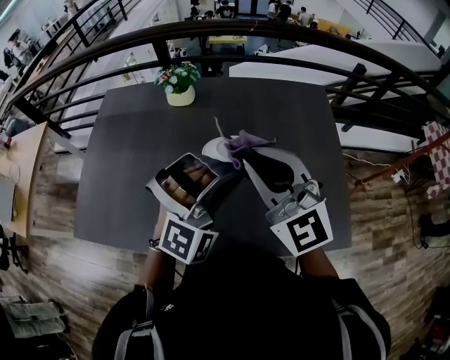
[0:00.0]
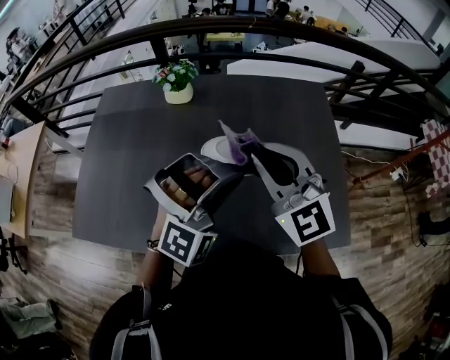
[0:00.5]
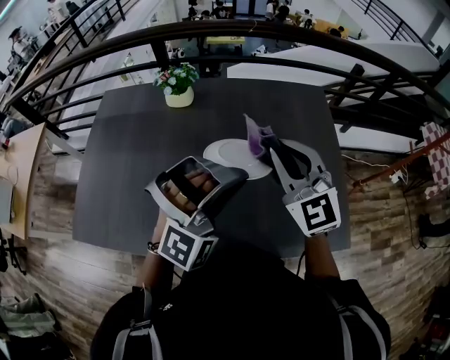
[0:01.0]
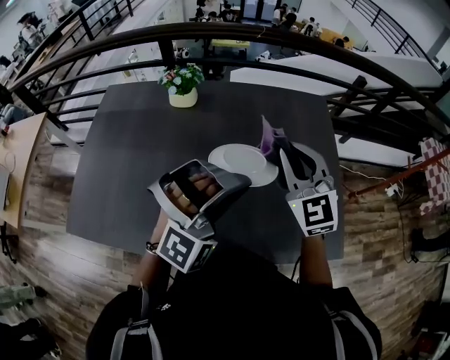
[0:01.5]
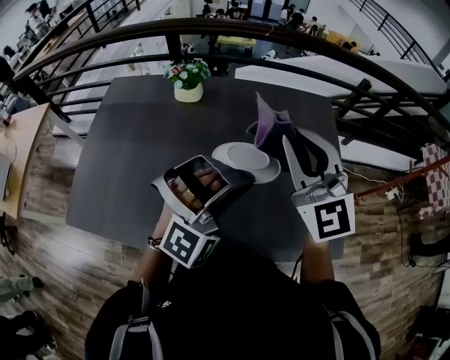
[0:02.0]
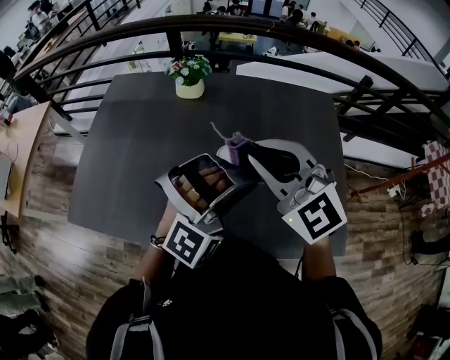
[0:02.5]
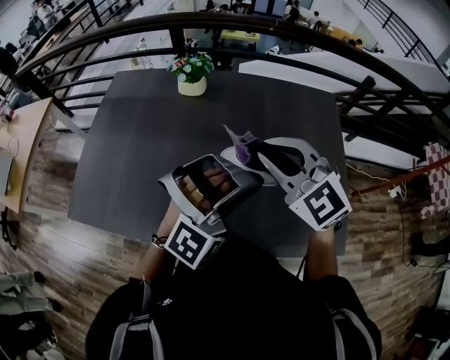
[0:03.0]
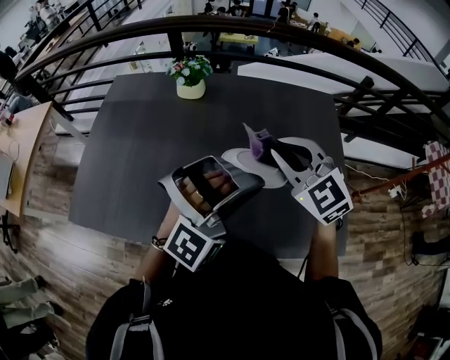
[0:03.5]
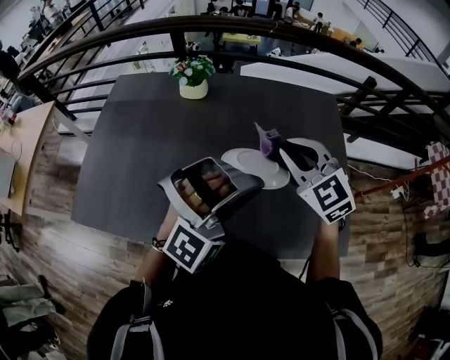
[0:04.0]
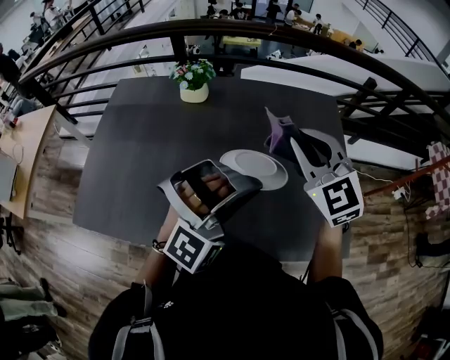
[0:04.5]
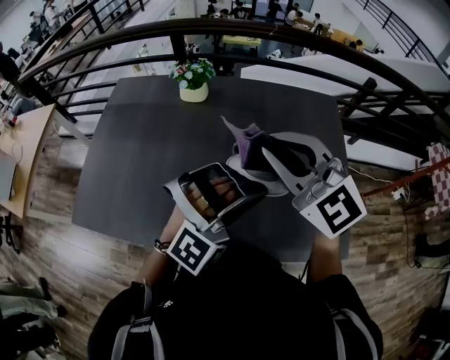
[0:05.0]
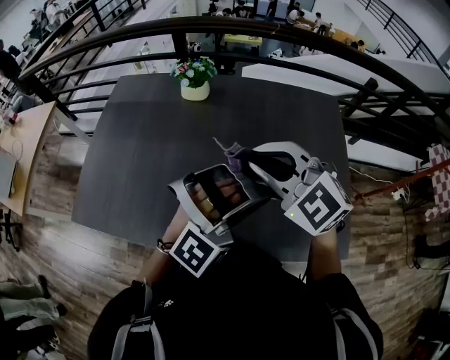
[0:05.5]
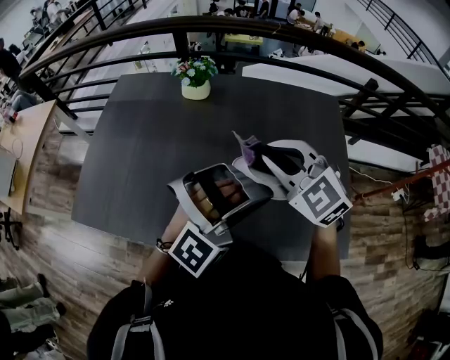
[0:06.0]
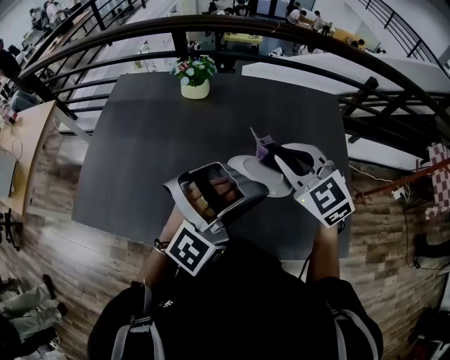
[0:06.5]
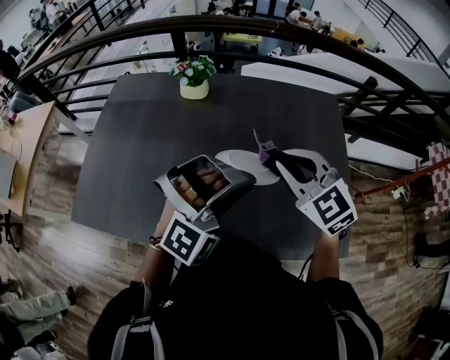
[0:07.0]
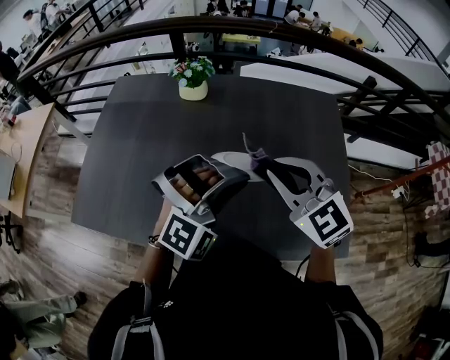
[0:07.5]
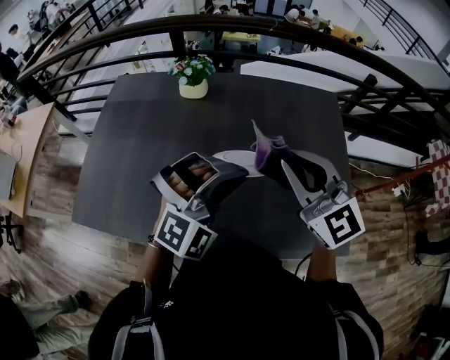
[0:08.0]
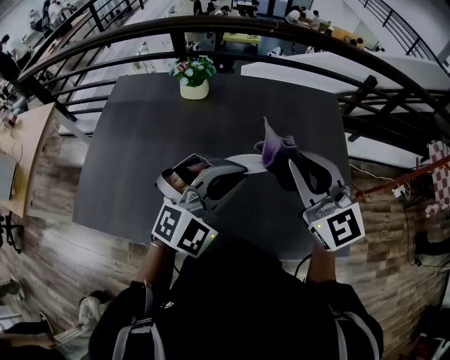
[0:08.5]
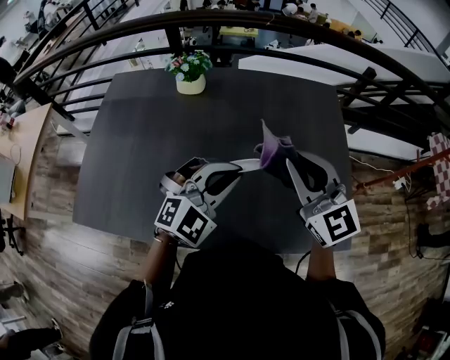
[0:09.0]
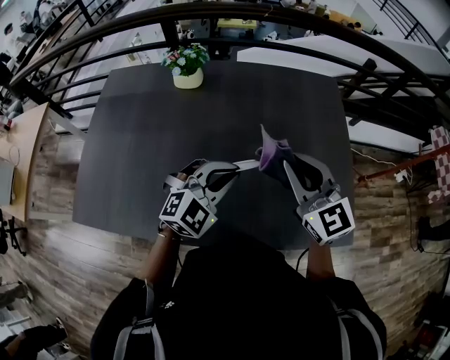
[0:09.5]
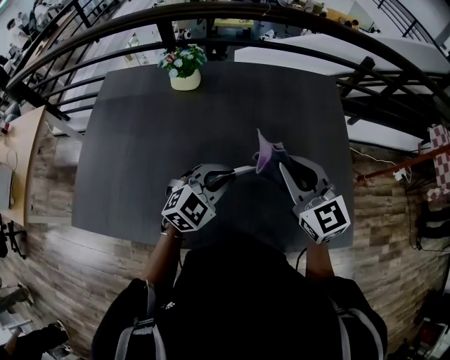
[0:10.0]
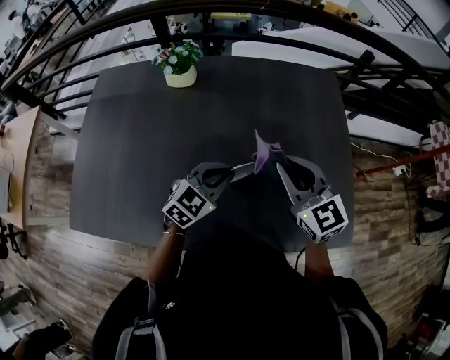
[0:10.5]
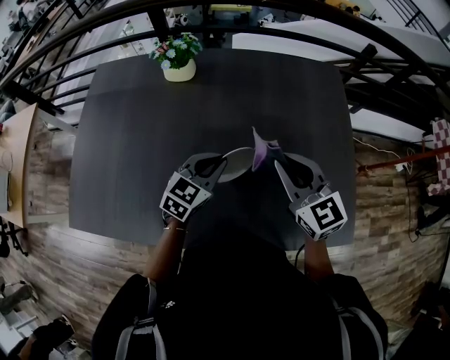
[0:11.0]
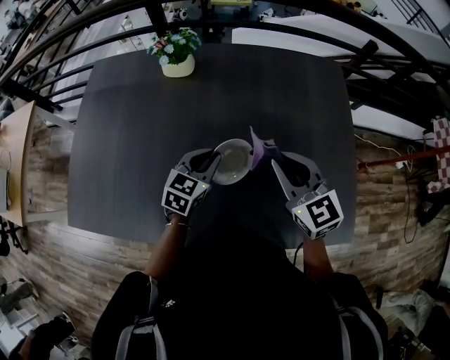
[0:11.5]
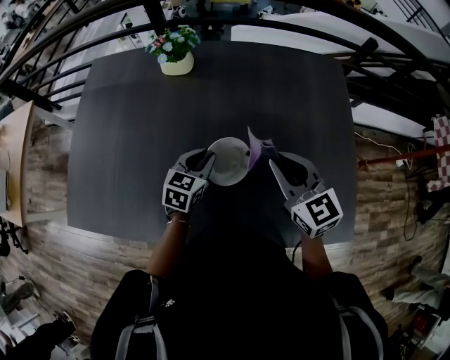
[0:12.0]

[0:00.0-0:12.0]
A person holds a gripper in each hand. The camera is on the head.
0:02.0 to 0:04.0: The right gripper is displaced downward by approximately 10 cm, and changes its angle by roughly 20 degrees.
0:04.0 to 0:06.0: The right gripper heads to the left, covering approximately 5 cm.
0:06.0 to 0:08.0: The right gripper ends up roughly 5 cm from where it was, and swivels some 20 degrees. The left gripper changes place by roughly 5 cm.
0:08.0 to 0:10.0: The right gripper shifts approximately 10 cm downward. The left gripper goes about 15 cm downward, and rolls counterclockwise, seen from behind, by roughly 40 degrees.
0:10.0 to 0:12.0: The right gripper is displaced downward by roughly 5 cm, while the left gripper moves downward, forward and to the left, approximately 15 cm, and changes its angle by about 40 degrees.

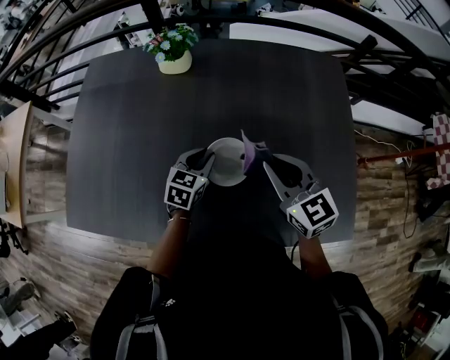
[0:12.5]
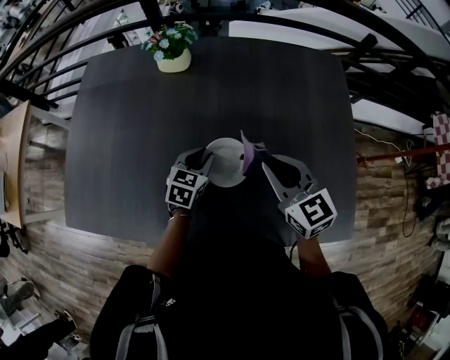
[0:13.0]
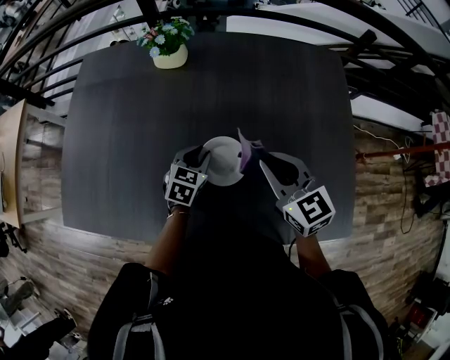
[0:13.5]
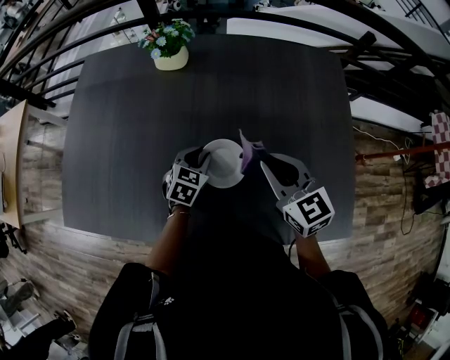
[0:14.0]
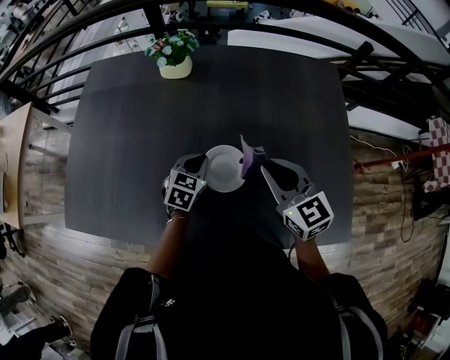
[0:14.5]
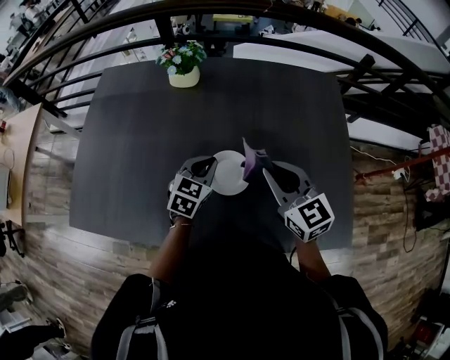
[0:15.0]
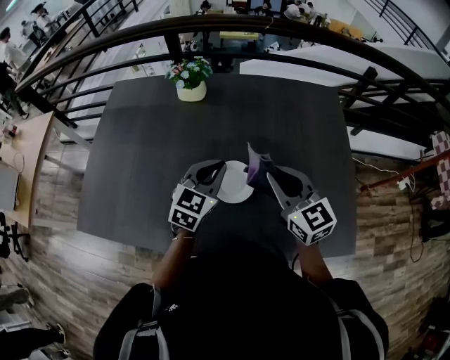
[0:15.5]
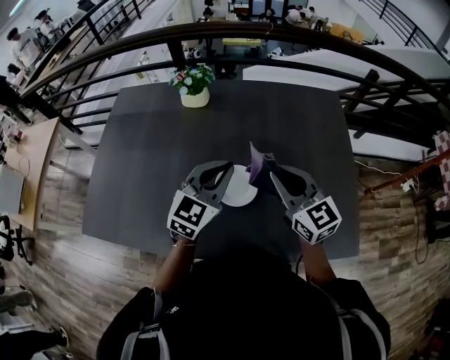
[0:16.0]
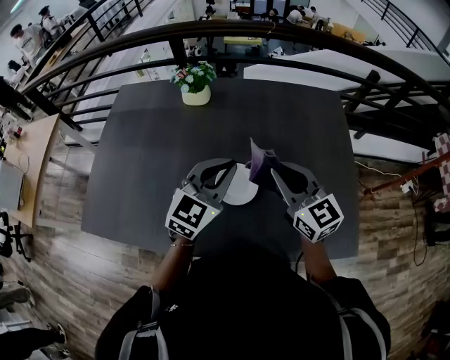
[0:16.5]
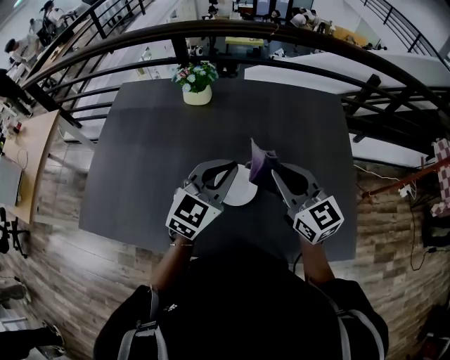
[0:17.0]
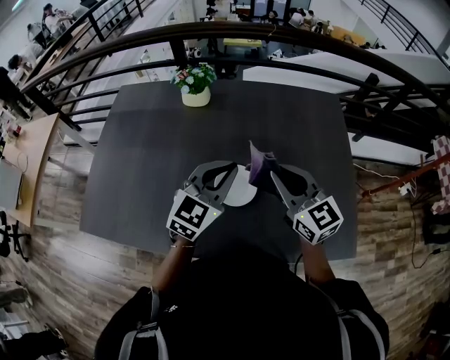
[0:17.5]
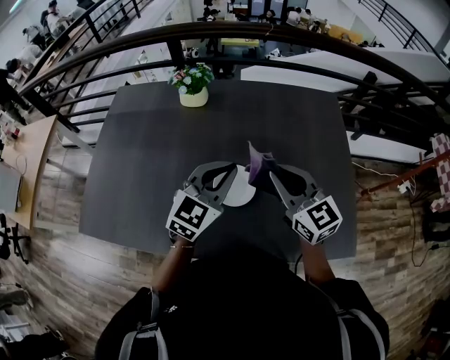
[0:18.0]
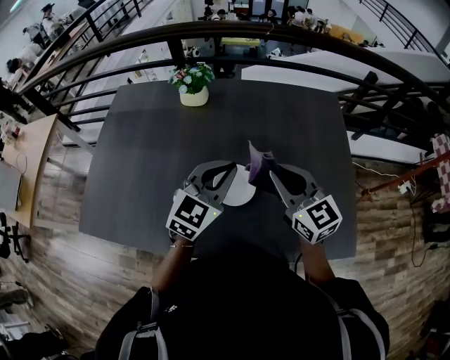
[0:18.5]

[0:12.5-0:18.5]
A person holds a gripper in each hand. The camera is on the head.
0:12.5 to 0:14.5: The grippers stay close to where they were, moving slightly.
0:14.5 to 0:16.5: The left gripper moves upward, approximately 20 cm, and changes its angle by about 30 degrees. The right gripper moves upward, some 5 cm.
0:16.5 to 0:18.5: Both grippers stay about where they are.

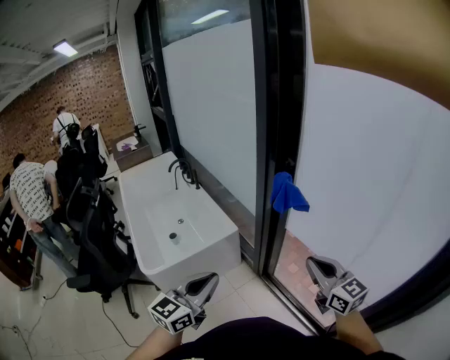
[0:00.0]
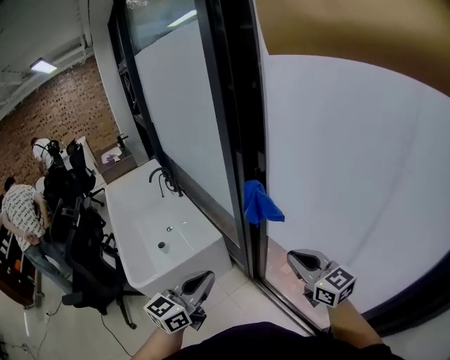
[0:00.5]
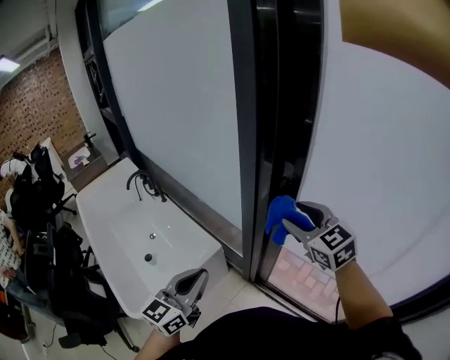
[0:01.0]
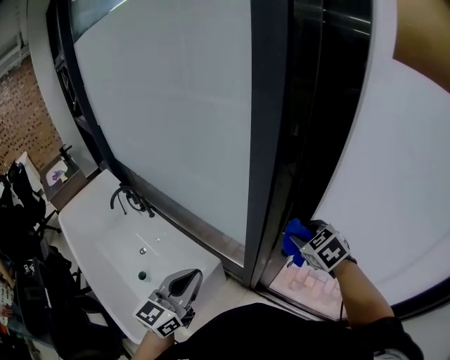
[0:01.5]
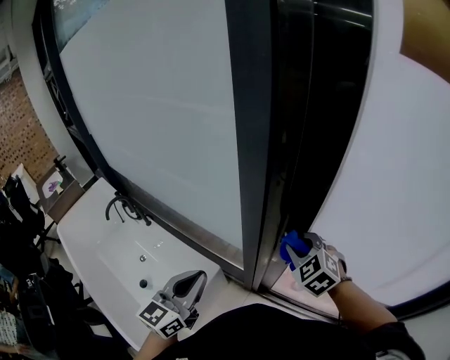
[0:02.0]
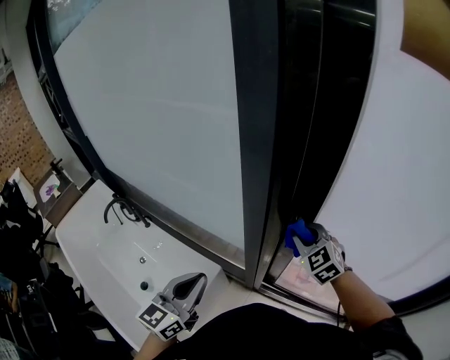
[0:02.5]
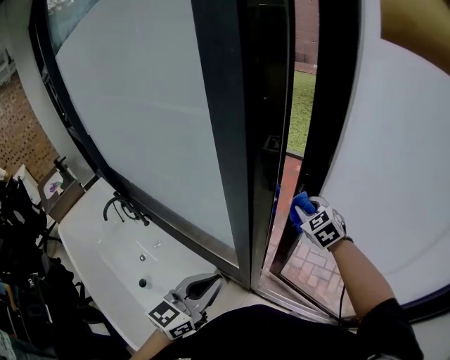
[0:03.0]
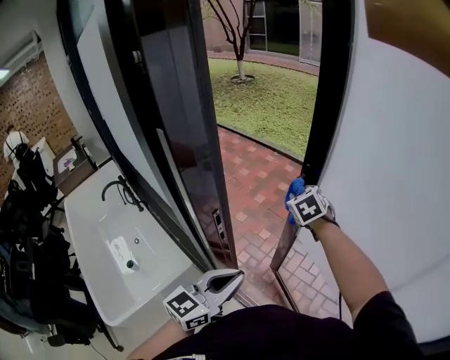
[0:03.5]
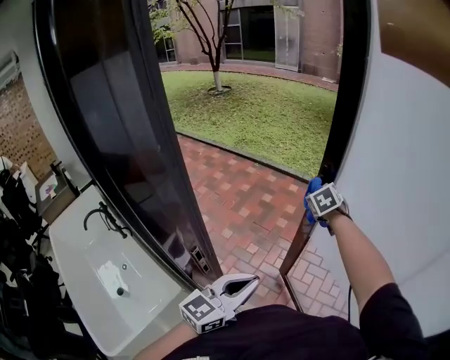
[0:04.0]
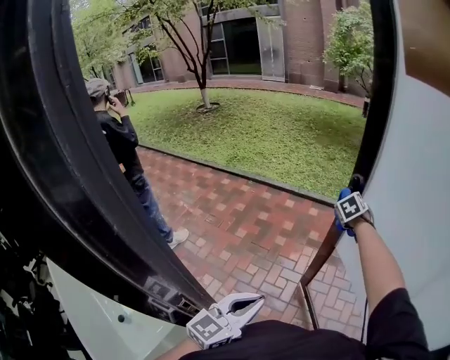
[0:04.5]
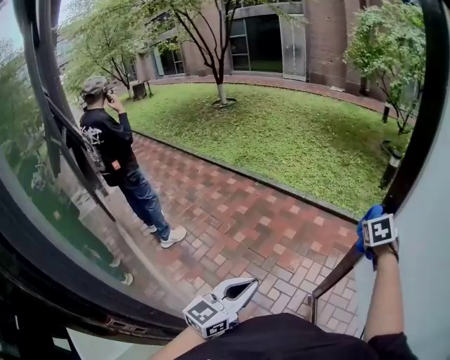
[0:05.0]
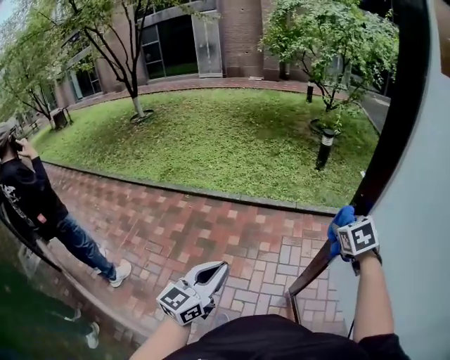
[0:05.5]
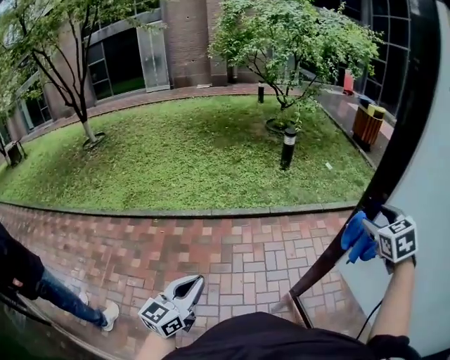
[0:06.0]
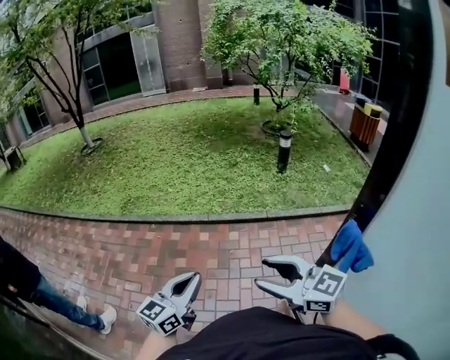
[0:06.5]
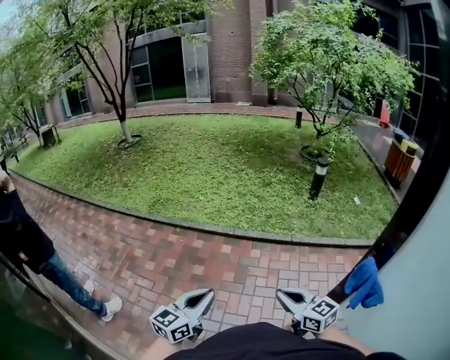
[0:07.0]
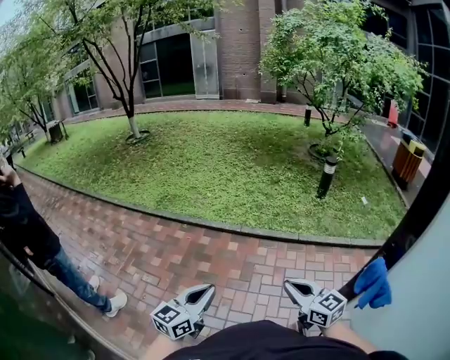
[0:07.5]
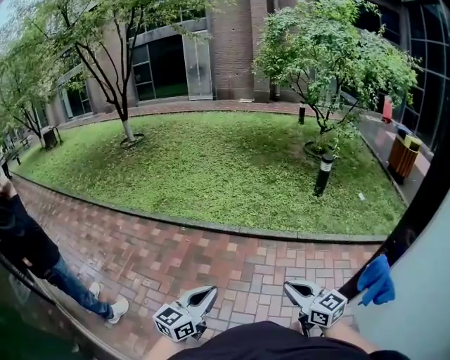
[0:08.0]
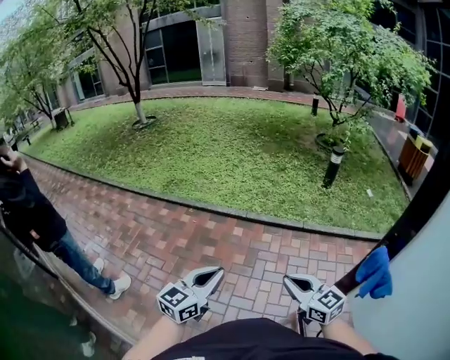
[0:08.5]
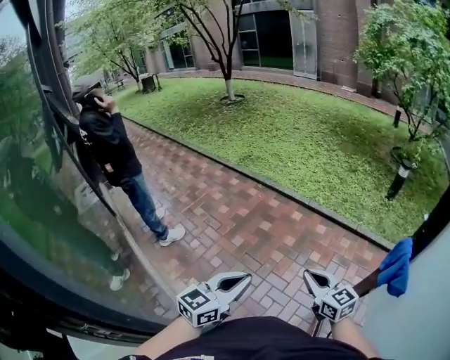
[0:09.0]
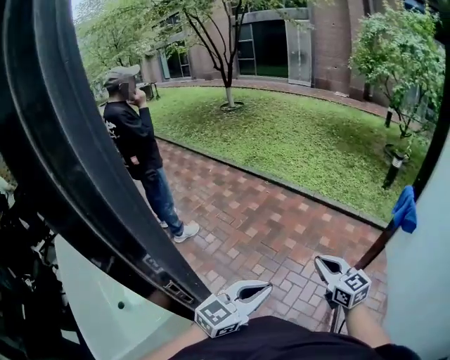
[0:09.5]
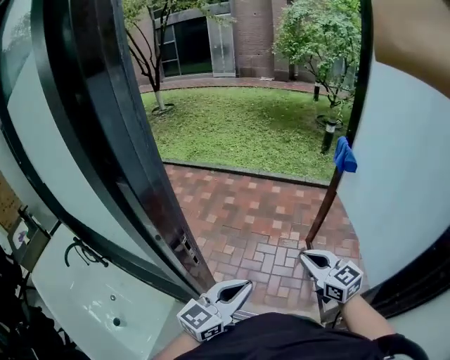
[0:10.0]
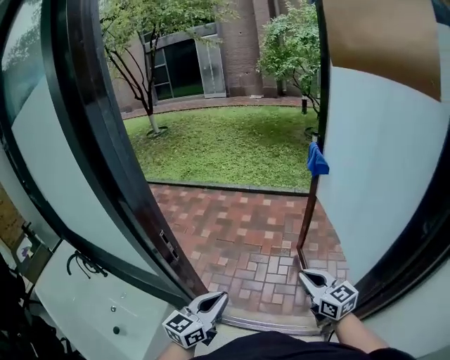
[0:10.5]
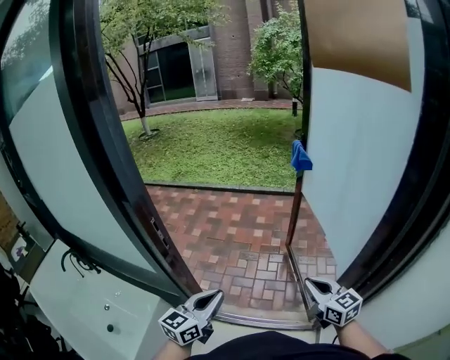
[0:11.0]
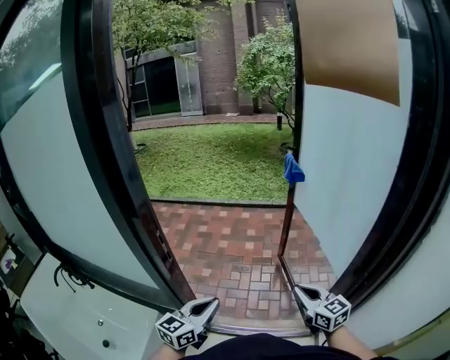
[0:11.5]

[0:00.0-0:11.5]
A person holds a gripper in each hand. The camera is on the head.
0:00.0 to 0:02.0: The right gripper ends up about 40 cm from where it was, tilts its fingers approximately 30 degrees downward, and opens, then closes again. The left gripper changes place by about 40 cm.
0:02.0 to 0:04.0: The left gripper goes roughly 35 cm to the right and forward, while the right gripper heads forward and to the right, covering roughly 50 cm, and swivels some 20 degrees.
0:04.0 to 0:06.0: The right gripper ends up some 50 cm from where it was, swivels roughly 40 degrees, and opens its fingers, while the left gripper changes place by about 60 cm.
0:06.0 to 0:07.5: The right gripper shifts by roughly 30 cm, swivels approximately 60 degrees, and closes its fingers.
0:07.5 to 0:09.5: Both grippers travel together backward, approximately 40 cm.
0:09.5 to 0:11.5: The two grippers go approximately 40 cm backward. The right gripper swivels some 30 degrees.
